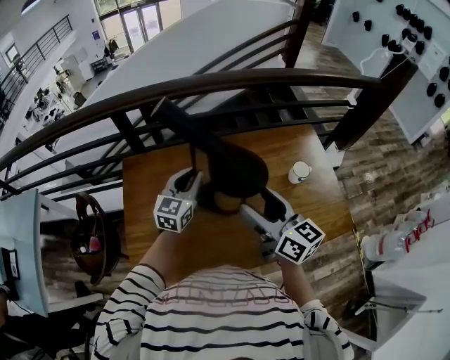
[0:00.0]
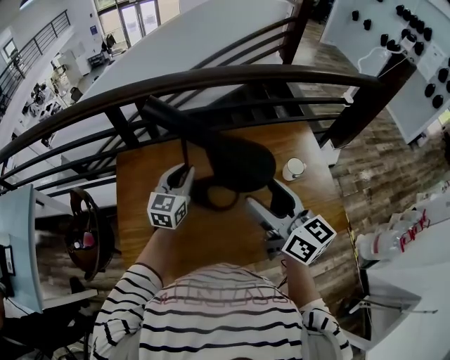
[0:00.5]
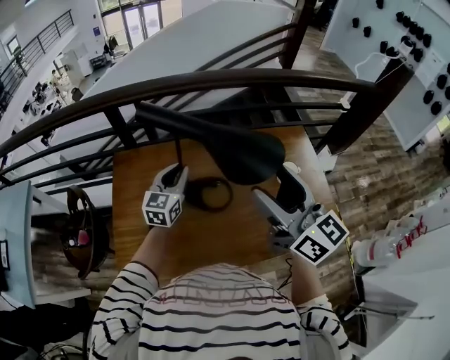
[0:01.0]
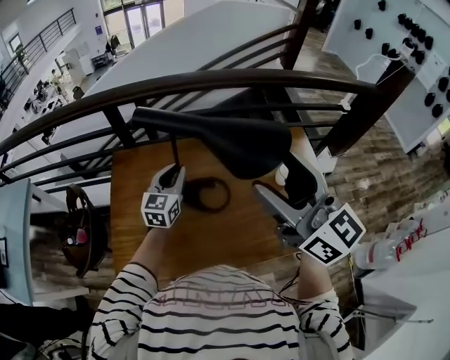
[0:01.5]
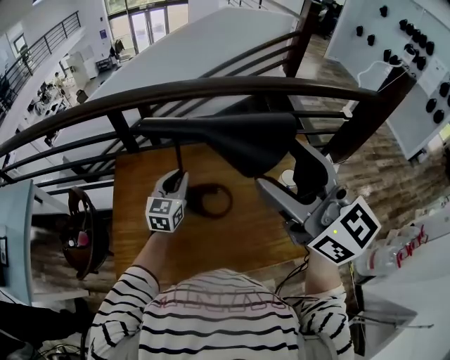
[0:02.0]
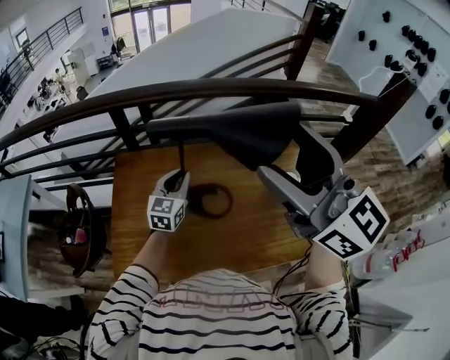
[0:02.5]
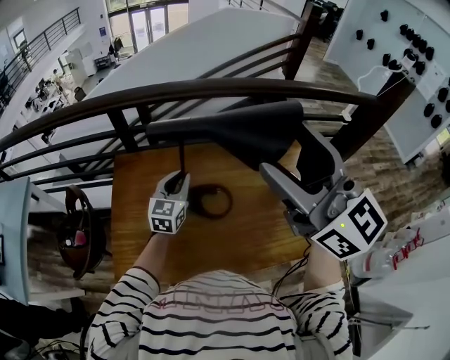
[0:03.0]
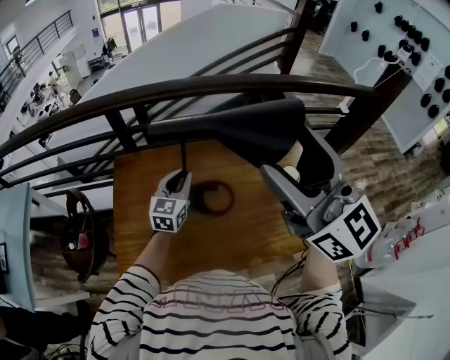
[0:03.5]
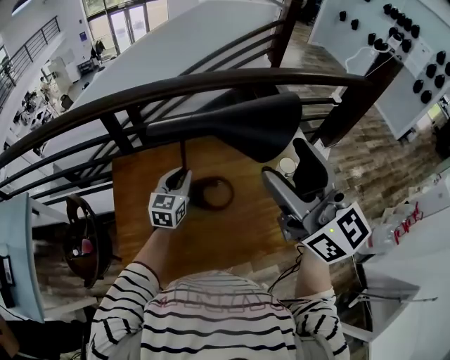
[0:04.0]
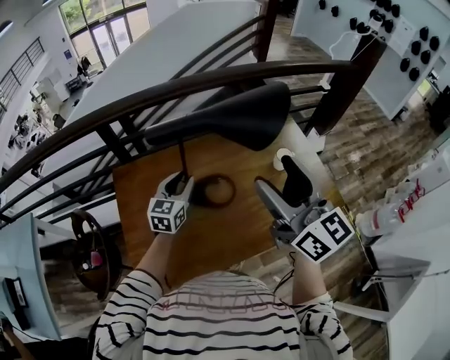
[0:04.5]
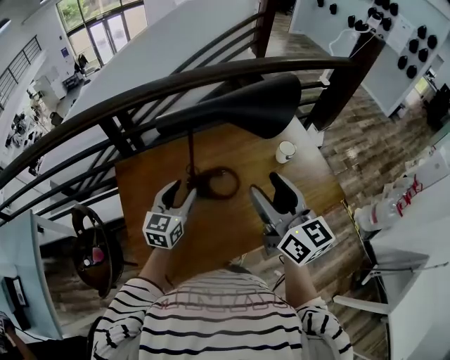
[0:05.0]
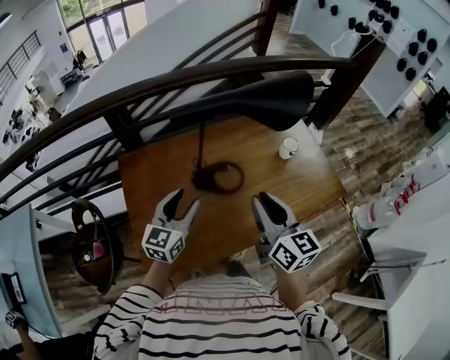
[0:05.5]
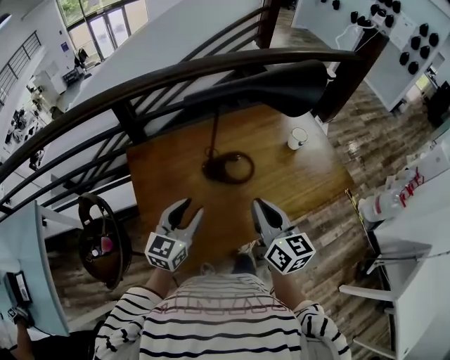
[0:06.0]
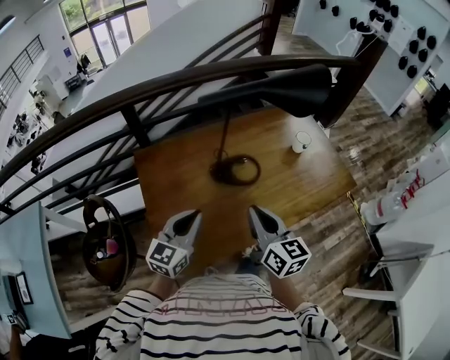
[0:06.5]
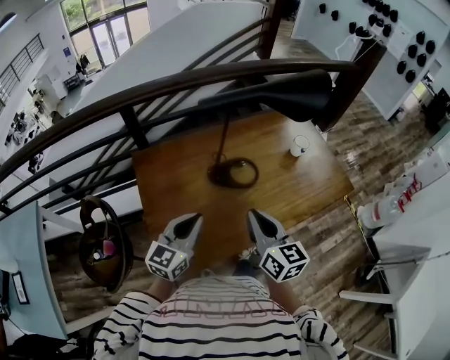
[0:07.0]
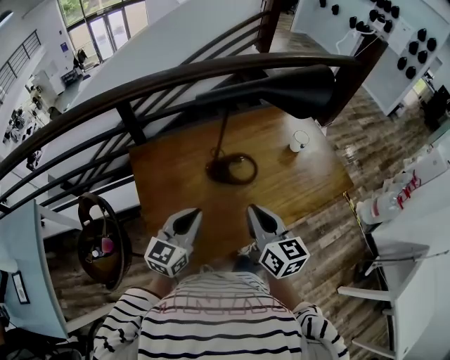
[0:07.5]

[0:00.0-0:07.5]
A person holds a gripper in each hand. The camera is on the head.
0:00.0 to 0:02.0: The right gripper travels upward by roughly 20 cm, and swivels some 30 degrees.
0:02.0 to 0:04.0: There are only small adjustments of the grippers.
0:04.0 to 0:05.5: The right gripper goes approximately 20 cm downward and backward, turns by roughly 30 degrees, and closes up. The left gripper travels backward by roughly 15 cm, and opens up.
0:05.5 to 0:07.5: The right gripper heads to the left and backward, covering some 10 cm; the left gripper heads backward and to the left, covering about 10 cm, and closes its fingers.

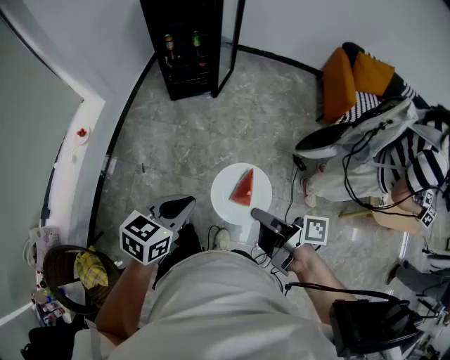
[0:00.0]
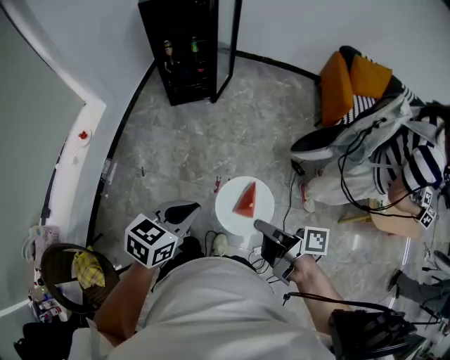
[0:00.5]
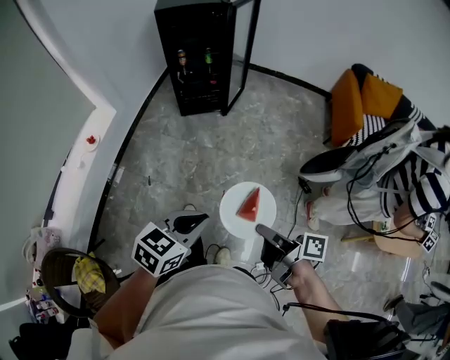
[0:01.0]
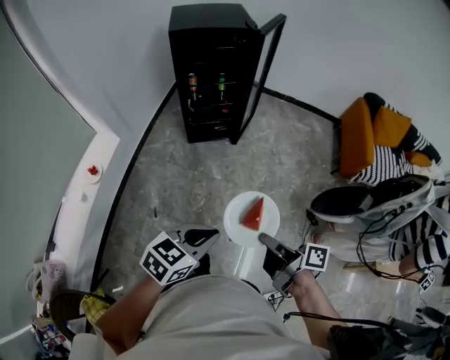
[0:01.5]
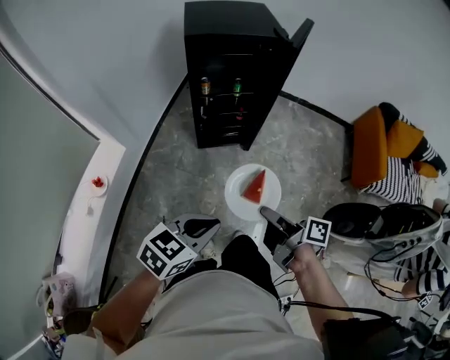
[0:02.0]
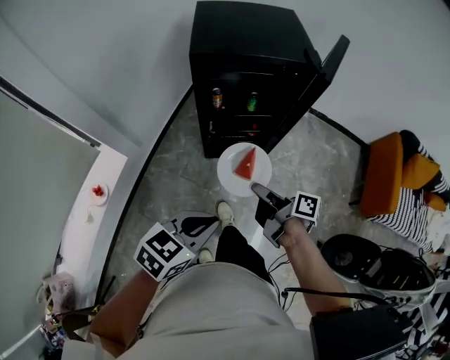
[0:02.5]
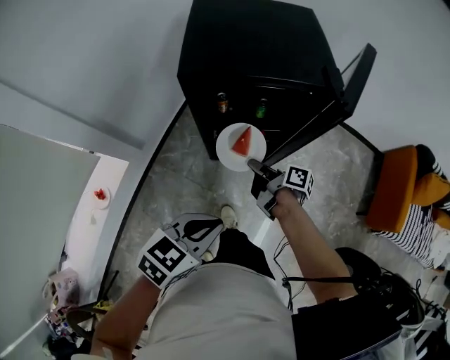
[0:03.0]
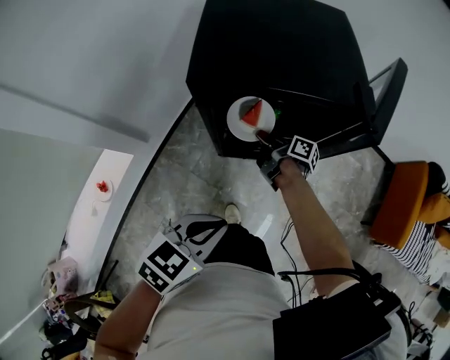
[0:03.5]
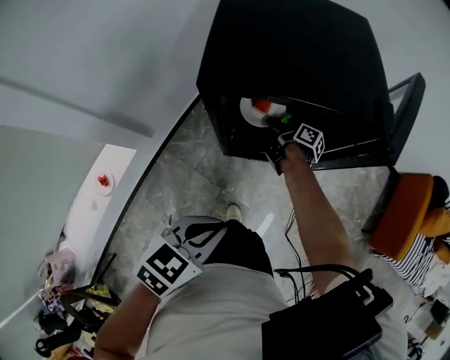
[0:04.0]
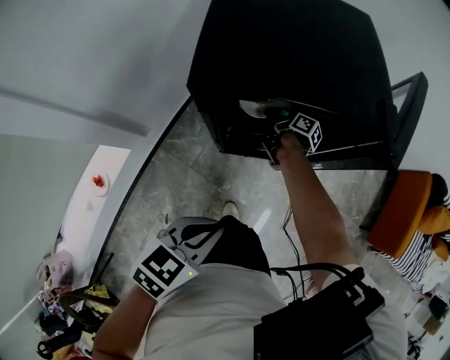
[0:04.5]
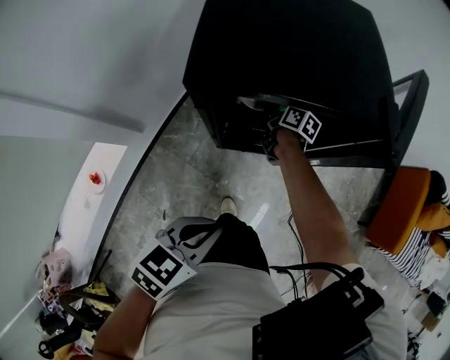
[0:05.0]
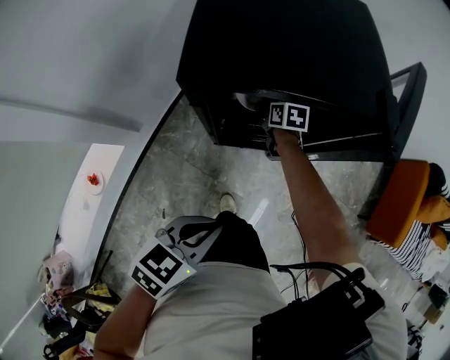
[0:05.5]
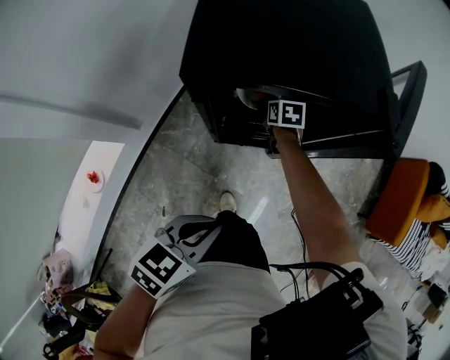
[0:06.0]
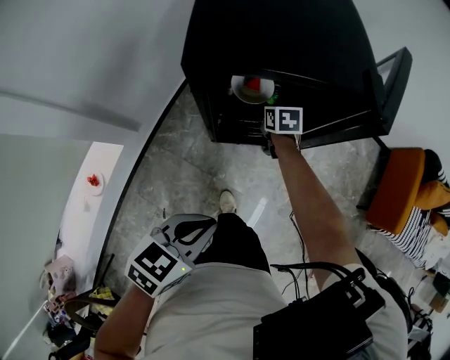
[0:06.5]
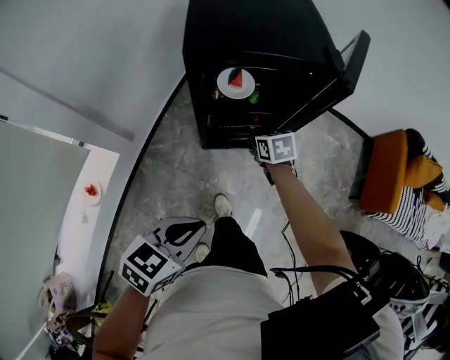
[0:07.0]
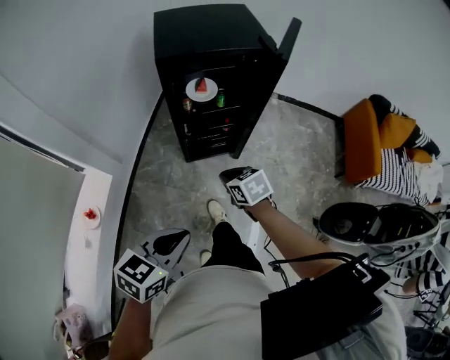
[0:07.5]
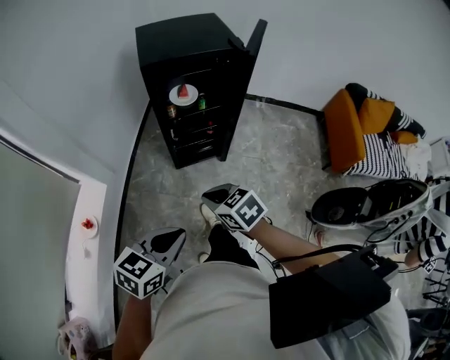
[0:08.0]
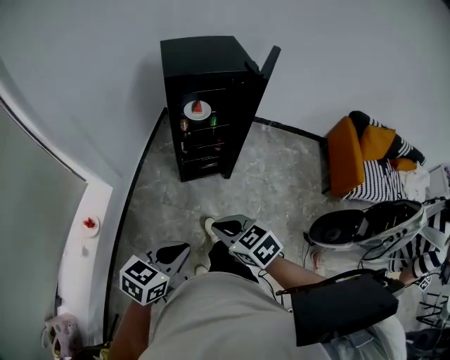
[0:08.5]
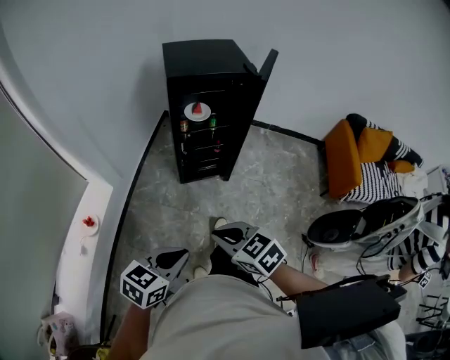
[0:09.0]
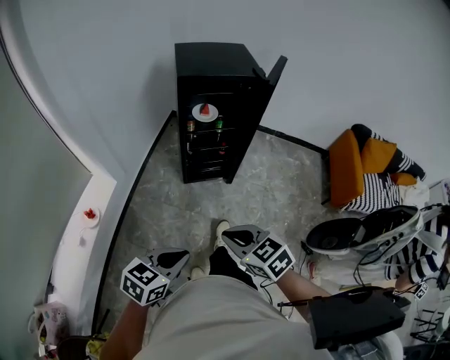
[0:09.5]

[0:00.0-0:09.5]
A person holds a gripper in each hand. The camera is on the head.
0:00.0 to 0:02.0: The two grippers go some 40 cm forward and to the left.
0:02.0 to 0:04.0: The right gripper travels forward by approximately 60 cm, while the left gripper goes some 35 cm forward.
0:04.0 to 0:05.5: The right gripper rotates around the line of its fingers by about 50 degrees, counterclockwise from behind, and opens its fingers.
0:05.5 to 0:07.5: The left gripper moves backward, about 25 cm. Meanwhile the right gripper heads backward, covering approximately 40 cm, and closes.
0:07.5 to 0:09.5: The left gripper travels backward by some 15 cm, while the right gripper heads backward and upward, covering some 30 cm, and changes its angle by approximately 20 degrees.

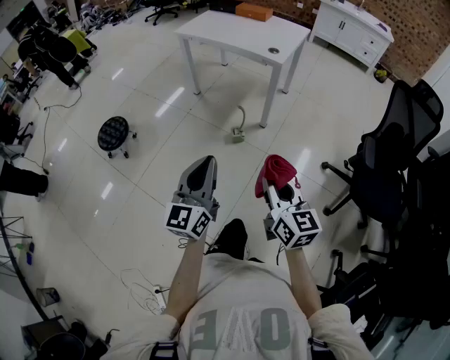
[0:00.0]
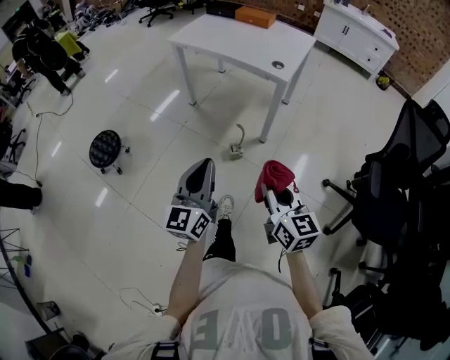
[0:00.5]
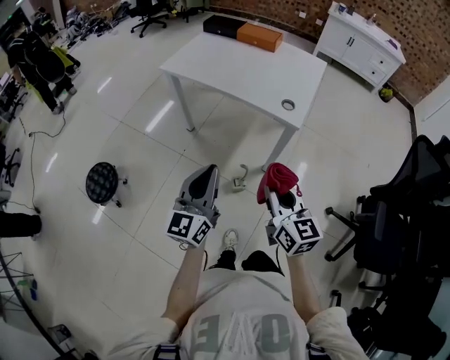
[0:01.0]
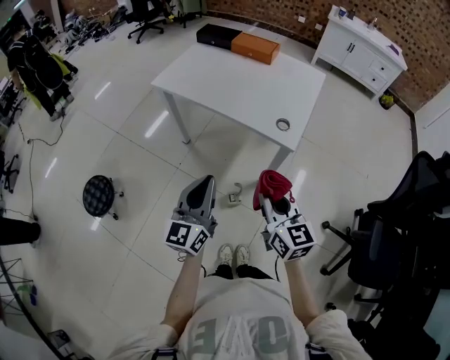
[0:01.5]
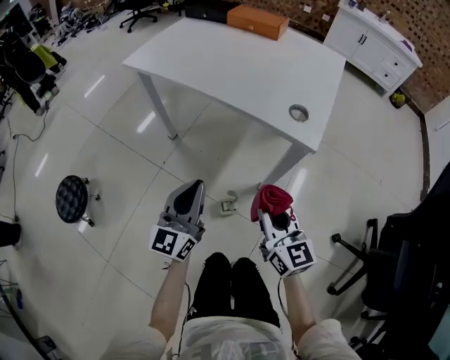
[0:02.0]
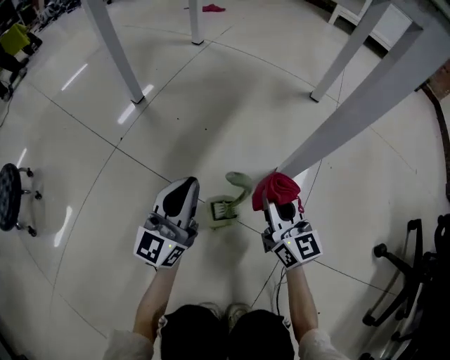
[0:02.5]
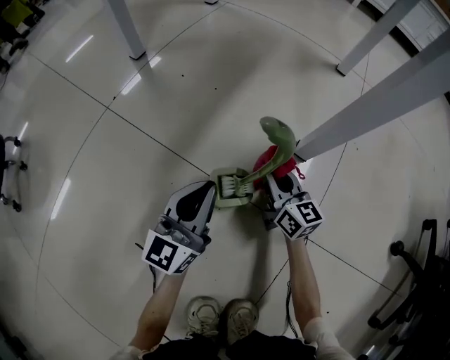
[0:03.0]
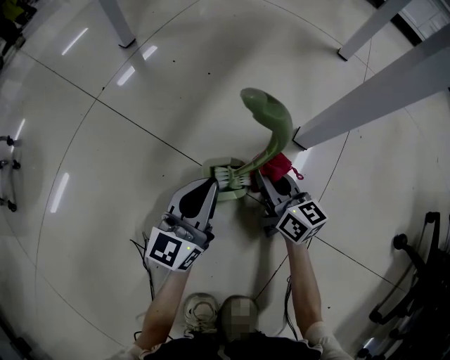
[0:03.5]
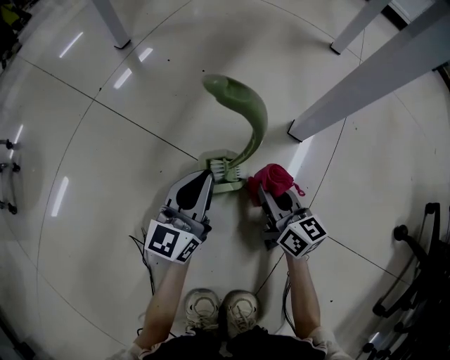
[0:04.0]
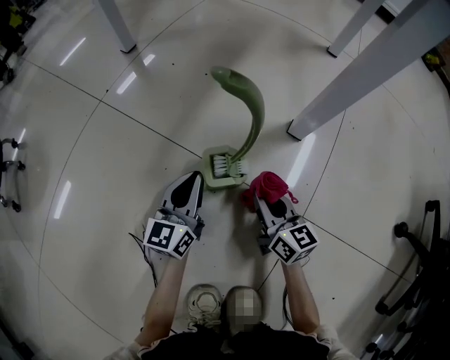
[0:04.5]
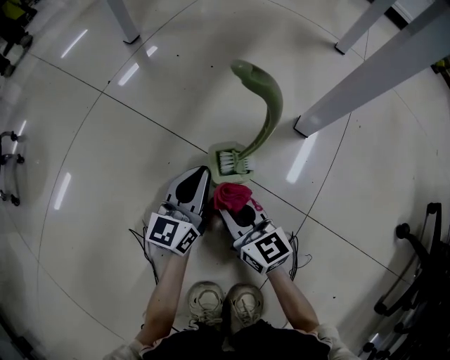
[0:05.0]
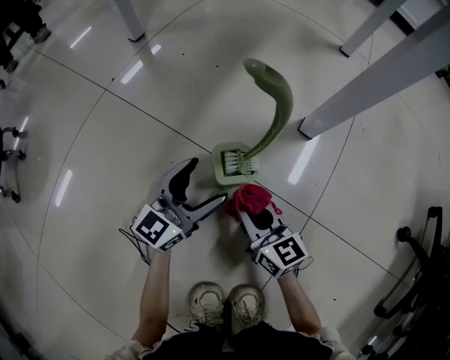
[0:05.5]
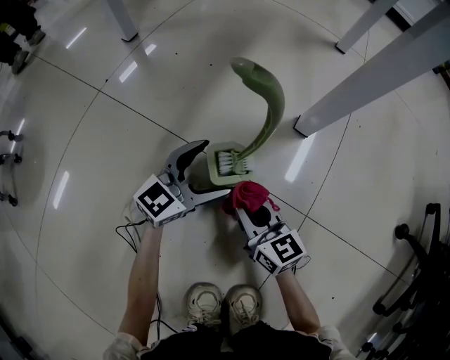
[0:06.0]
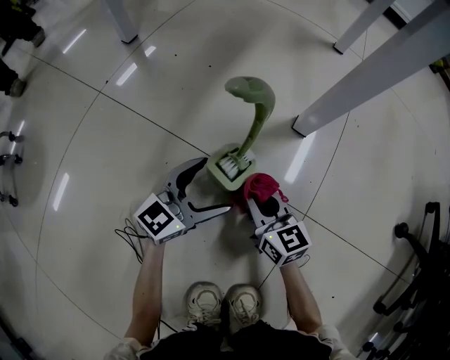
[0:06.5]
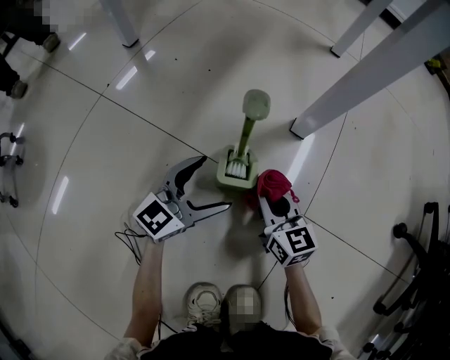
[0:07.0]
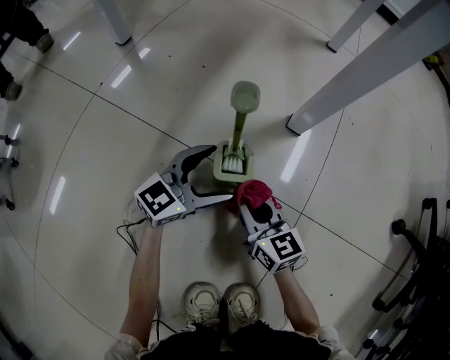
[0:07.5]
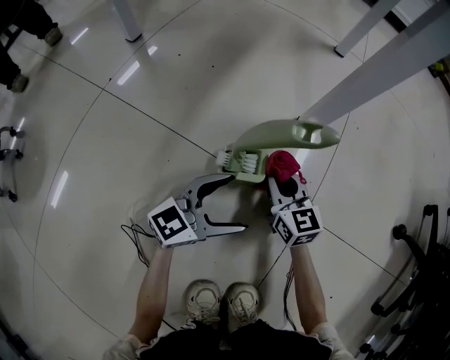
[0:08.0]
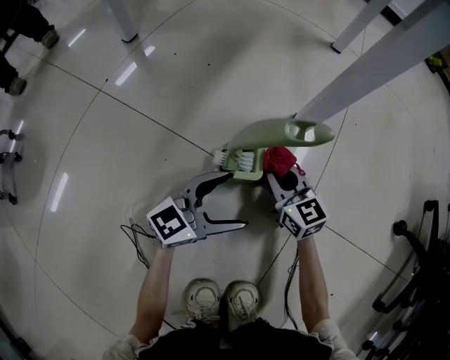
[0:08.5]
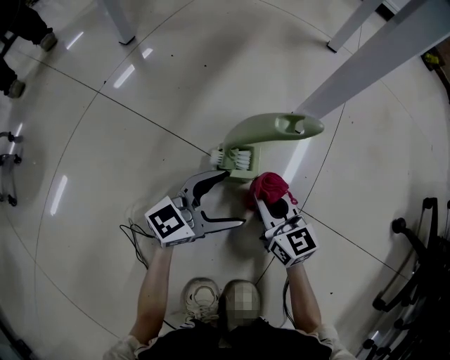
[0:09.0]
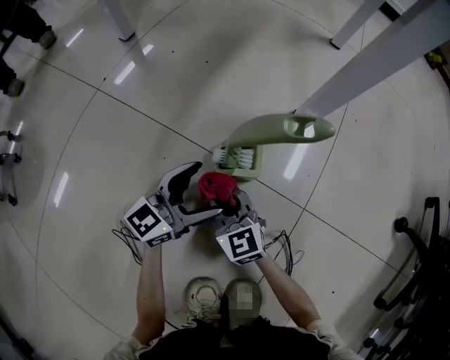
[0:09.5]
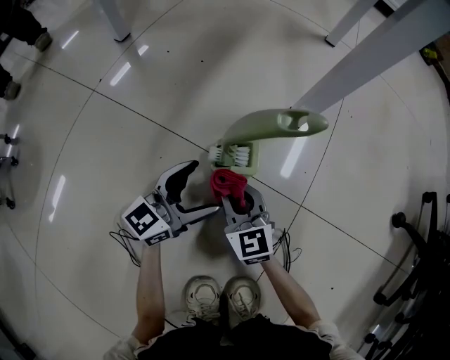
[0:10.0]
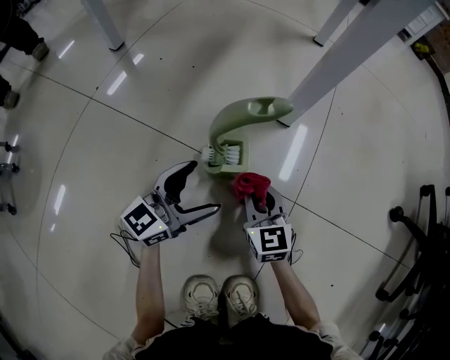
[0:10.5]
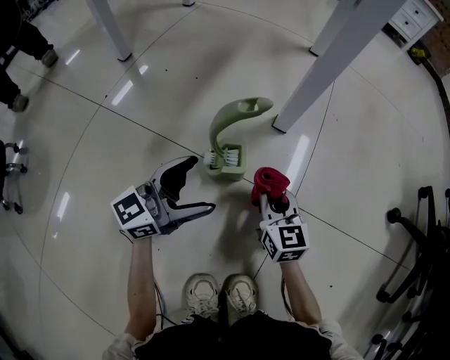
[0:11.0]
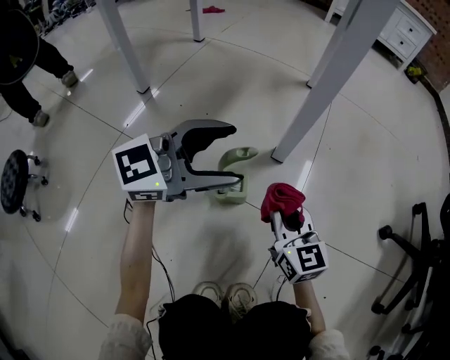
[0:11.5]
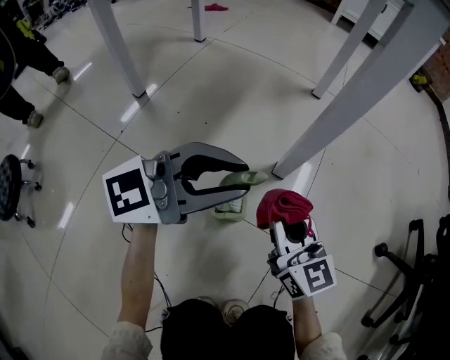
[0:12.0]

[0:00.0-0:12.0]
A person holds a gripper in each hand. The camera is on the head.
0:00.0 to 0:02.0: The two grippers travel together, forward, roughly 60 cm. The two grippers go roughly 25 cm downward.
0:02.0 to 0:04.0: Both grippers move downward, approximately 70 cm. The right gripper changes its angle by about 20 degrees.
0:04.0 to 0:06.0: The left gripper swivels some 30 degrees, and opens its fingers. The right gripper heads to the left and backward, covering approximately 10 cm.
0:06.0 to 0:08.0: The left gripper heads backward and to the right, covering roughly 10 cm; the right gripper goes about 10 cm forward and to the right.
0:08.0 to 0:10.0: The right gripper shifts roughly 10 cm backward and to the left. Meanwhile the left gripper moves to the left, roughly 5 cm.
0:10.0 to 0:12.0: Both grippers move upward, approximately 30 cm. The right gripper rotates about 20 degrees. The left gripper swivels about 40 degrees, and closes up.
